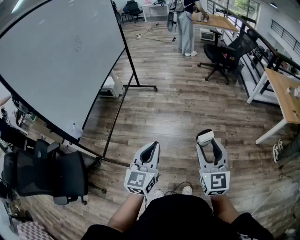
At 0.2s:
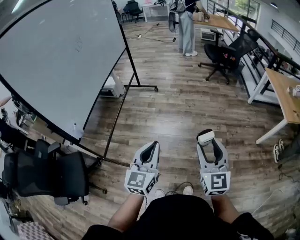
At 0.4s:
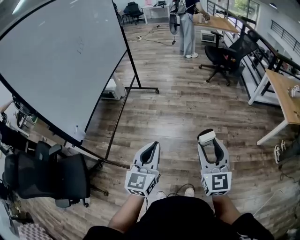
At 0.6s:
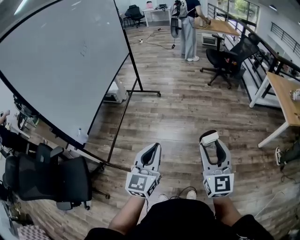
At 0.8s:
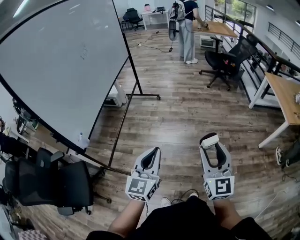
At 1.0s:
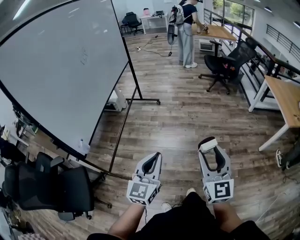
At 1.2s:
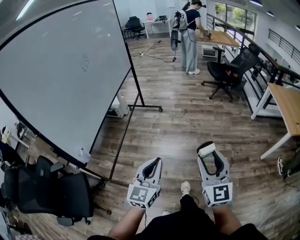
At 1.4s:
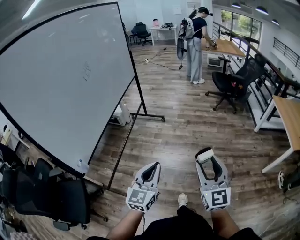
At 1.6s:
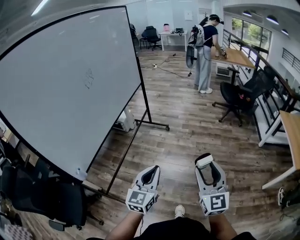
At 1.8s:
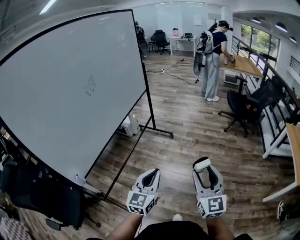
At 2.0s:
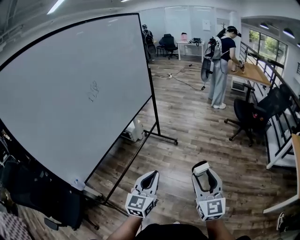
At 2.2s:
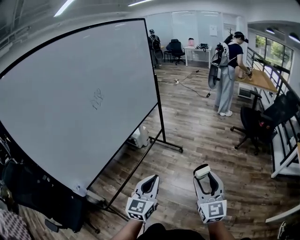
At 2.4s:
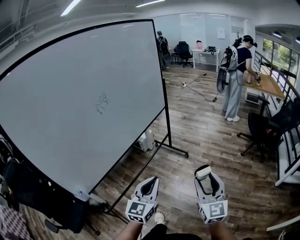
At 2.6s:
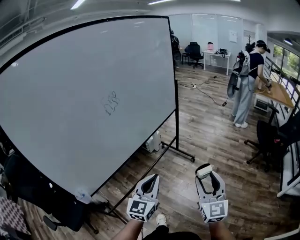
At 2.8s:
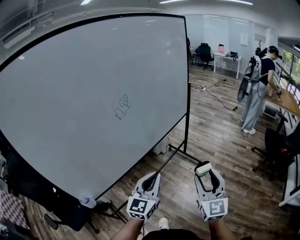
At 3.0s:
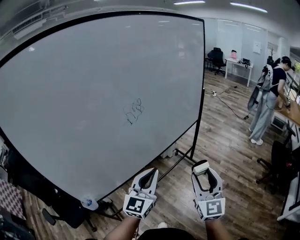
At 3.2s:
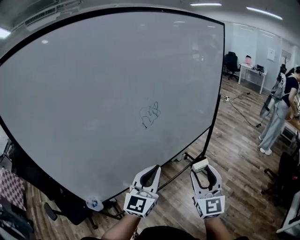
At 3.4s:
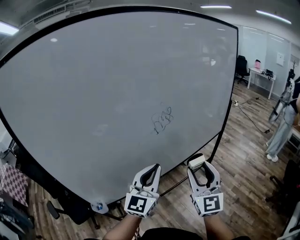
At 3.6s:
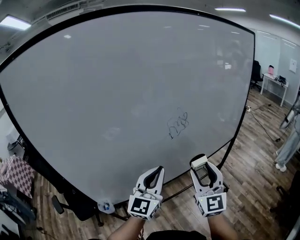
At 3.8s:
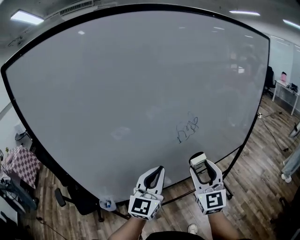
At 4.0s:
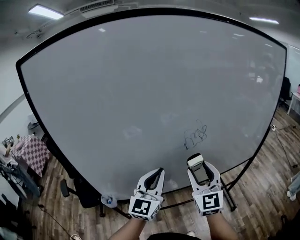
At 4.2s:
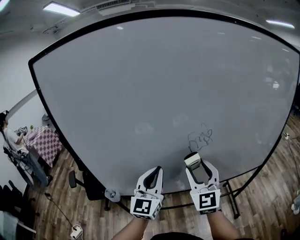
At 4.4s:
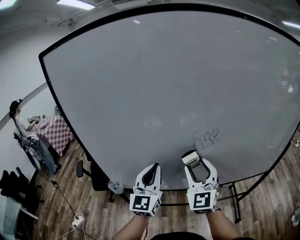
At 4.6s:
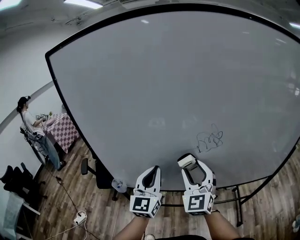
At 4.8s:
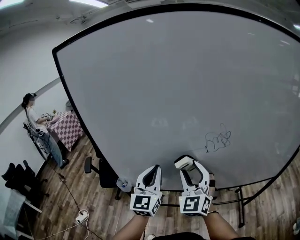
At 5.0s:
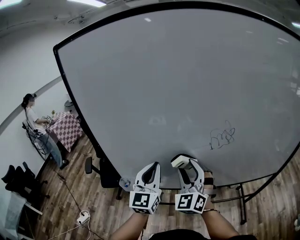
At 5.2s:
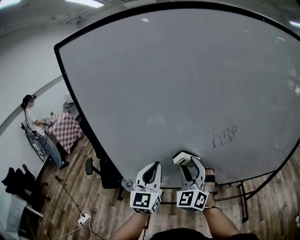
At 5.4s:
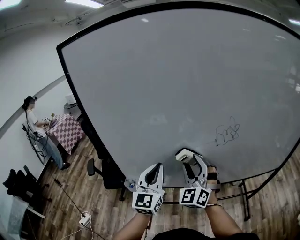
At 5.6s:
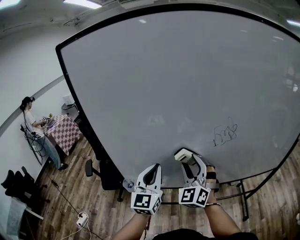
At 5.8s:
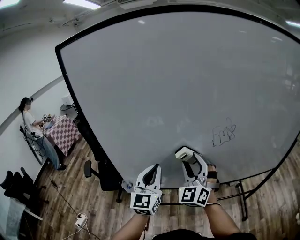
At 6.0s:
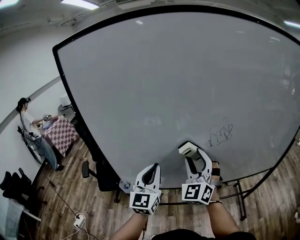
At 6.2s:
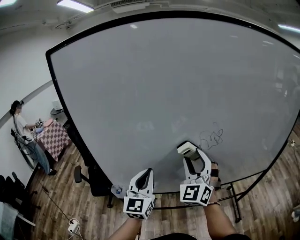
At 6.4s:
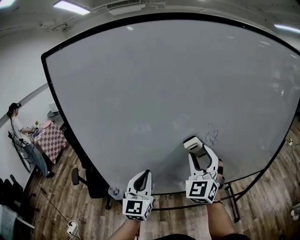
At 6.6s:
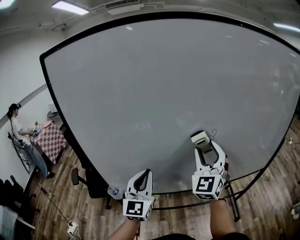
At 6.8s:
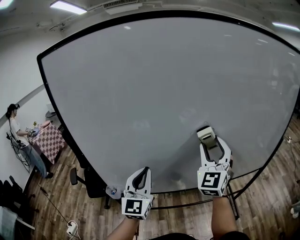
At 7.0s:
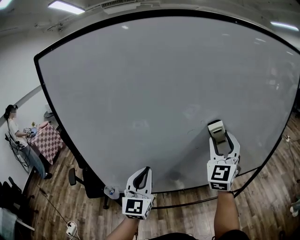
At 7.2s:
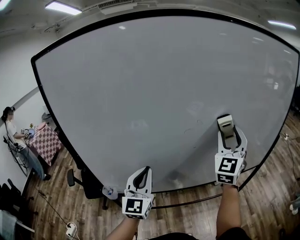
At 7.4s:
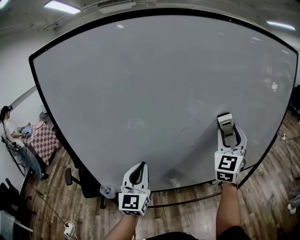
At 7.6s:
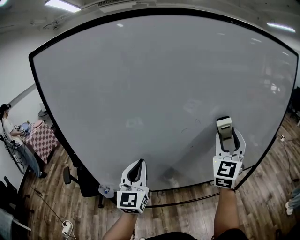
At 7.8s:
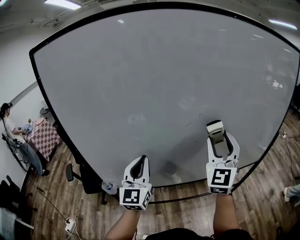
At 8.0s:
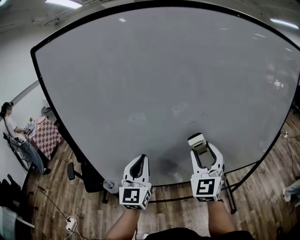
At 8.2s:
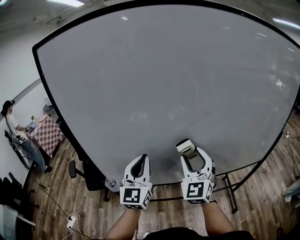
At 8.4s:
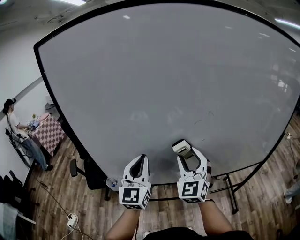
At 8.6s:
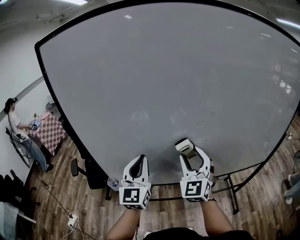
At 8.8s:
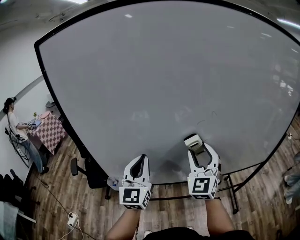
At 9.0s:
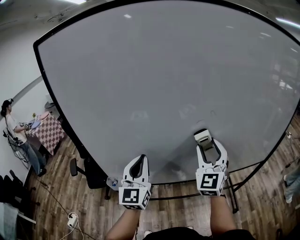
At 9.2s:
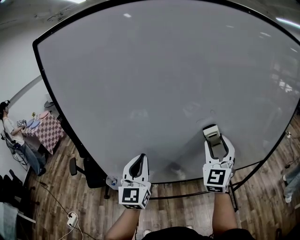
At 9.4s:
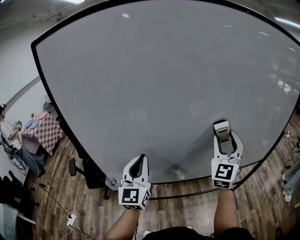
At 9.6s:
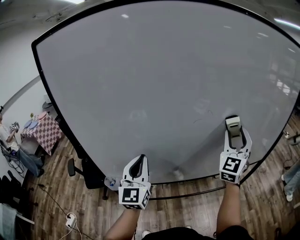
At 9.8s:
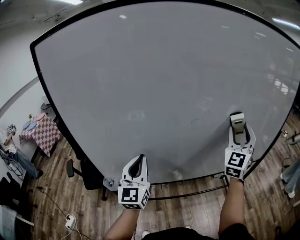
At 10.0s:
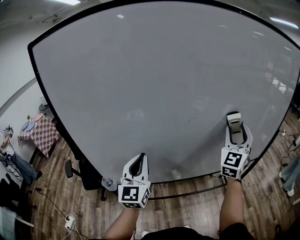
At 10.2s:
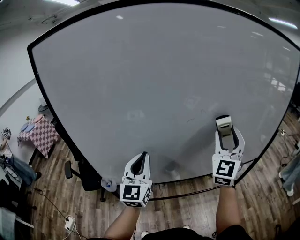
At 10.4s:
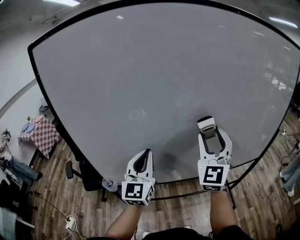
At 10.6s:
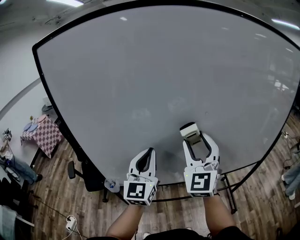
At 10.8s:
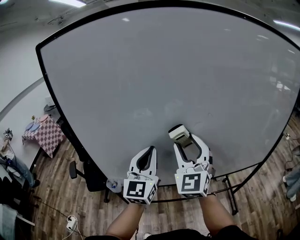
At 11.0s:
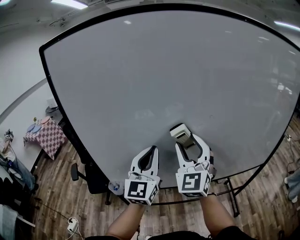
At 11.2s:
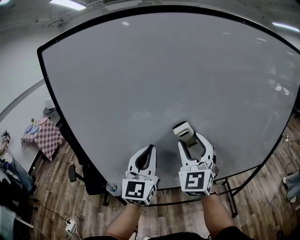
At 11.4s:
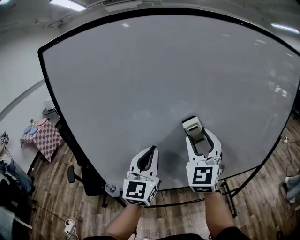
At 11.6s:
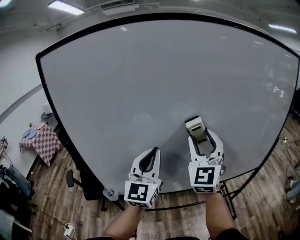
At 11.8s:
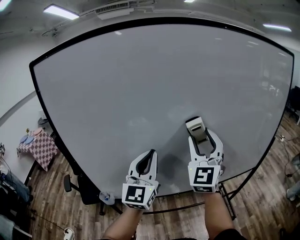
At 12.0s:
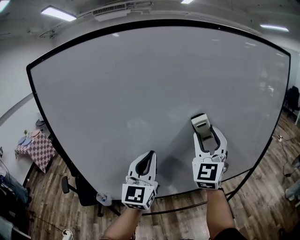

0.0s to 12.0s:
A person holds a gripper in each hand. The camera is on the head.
0.0s to 1.6s: The two grippers go roughly 20 cm forward.
1.6s to 3.0s: The left gripper changes place by approximately 40 cm, and swivels some 30 degrees. Meanwhile the right gripper shifts by about 50 cm, and rotates some 30 degrees.
3.0s to 4.4s: The right gripper ends up roughly 35 cm from where it was, and rotates approximately 50 degrees; the left gripper shifts by about 20 cm, and swivels approximately 50 degrees.
4.4s to 6.0s: The two grippers go roughly 5 cm to the left.
6.0s to 7.6s: The right gripper shifts approximately 25 cm to the right and upward, and changes its angle by some 30 degrees. The left gripper moves some 5 cm.
7.6s to 9.0s: The right gripper travels to the left and downward by about 15 cm.
9.0s to 10.4s: The left gripper moves about 5 cm, while the right gripper is displaced upward by approximately 5 cm, and reaches approximately 15 cm to the right, then returns.
10.4s to 12.0s: The left gripper shifts some 10 cm upward and to the right. Meanwhile the right gripper heads upward, covering about 5 cm, and travels to the left and back again, some 10 cm each way.

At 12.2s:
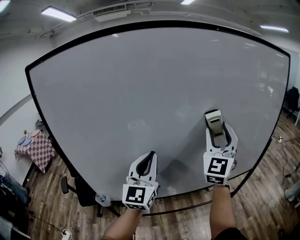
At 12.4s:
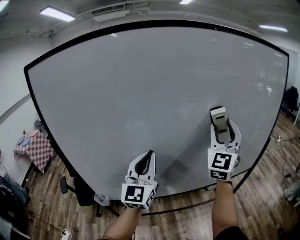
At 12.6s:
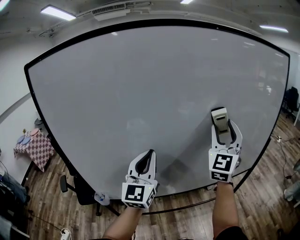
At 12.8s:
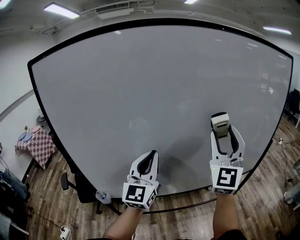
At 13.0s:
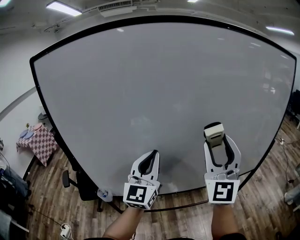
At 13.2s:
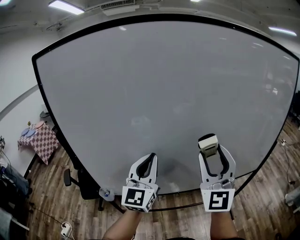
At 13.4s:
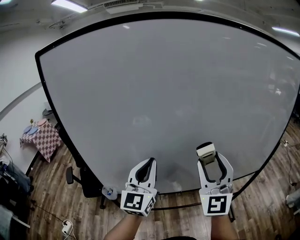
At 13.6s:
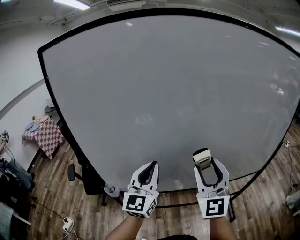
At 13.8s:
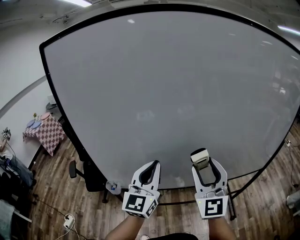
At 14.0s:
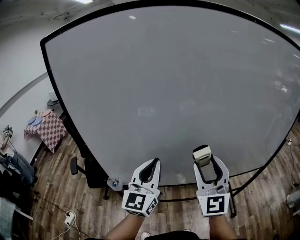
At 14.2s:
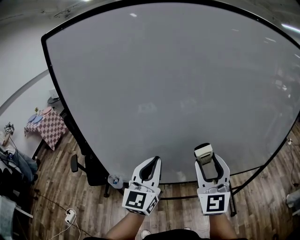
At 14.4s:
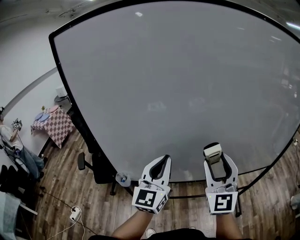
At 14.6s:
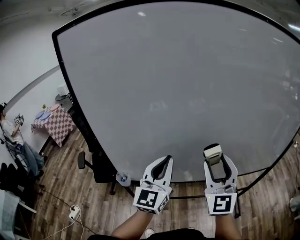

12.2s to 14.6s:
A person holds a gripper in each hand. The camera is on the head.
12.2s to 13.4s: The left gripper changes place by some 5 cm. Meanwhile the right gripper travels backward, to the left and downward by approximately 15 cm, and swivels about 20 degrees.
13.4s to 14.6s: The left gripper moves about 5 cm; the right gripper heads downward and to the left, covering roughly 10 cm.

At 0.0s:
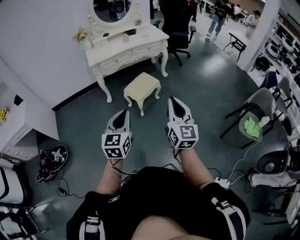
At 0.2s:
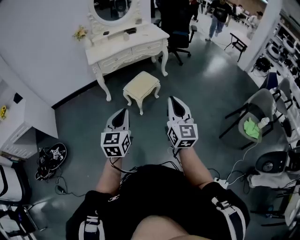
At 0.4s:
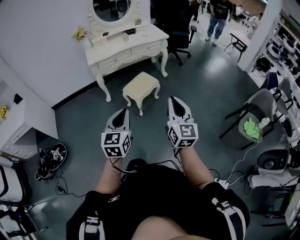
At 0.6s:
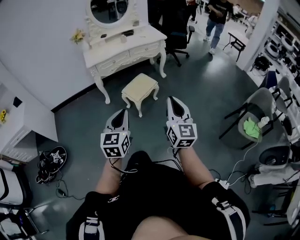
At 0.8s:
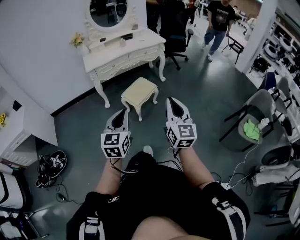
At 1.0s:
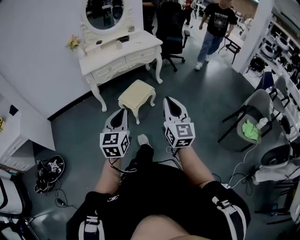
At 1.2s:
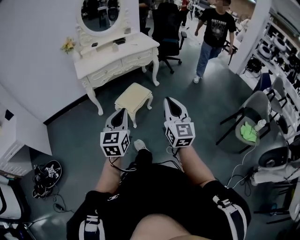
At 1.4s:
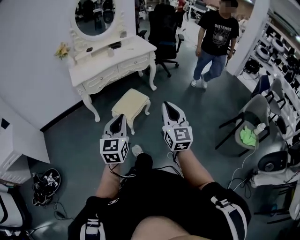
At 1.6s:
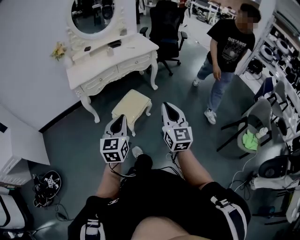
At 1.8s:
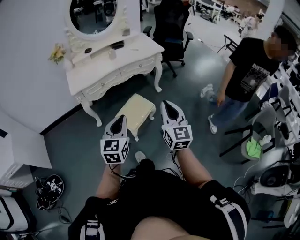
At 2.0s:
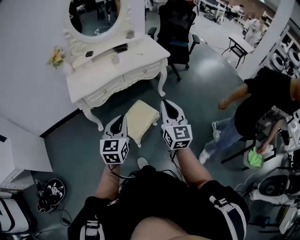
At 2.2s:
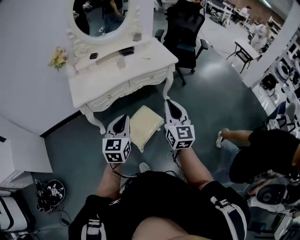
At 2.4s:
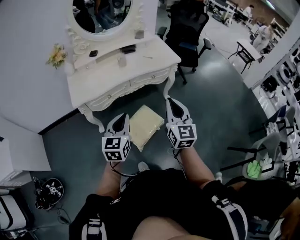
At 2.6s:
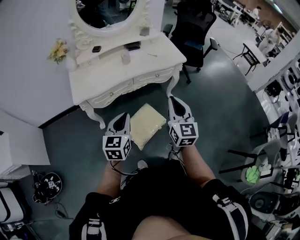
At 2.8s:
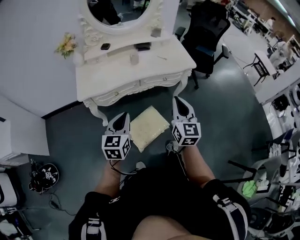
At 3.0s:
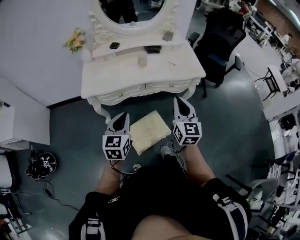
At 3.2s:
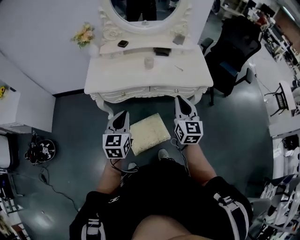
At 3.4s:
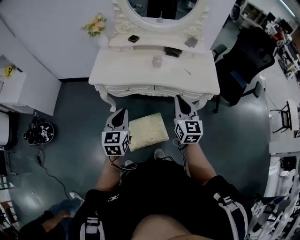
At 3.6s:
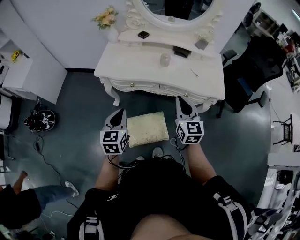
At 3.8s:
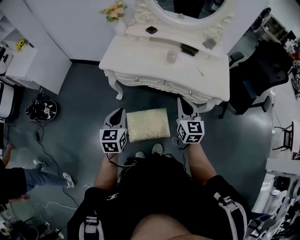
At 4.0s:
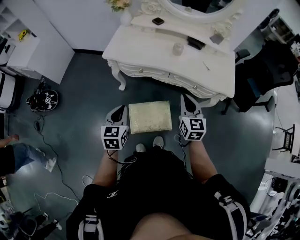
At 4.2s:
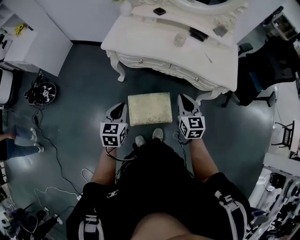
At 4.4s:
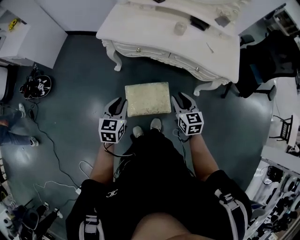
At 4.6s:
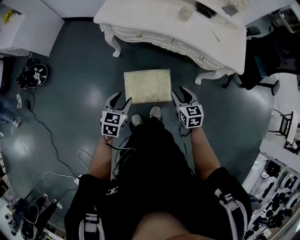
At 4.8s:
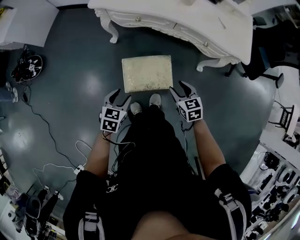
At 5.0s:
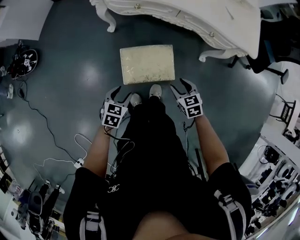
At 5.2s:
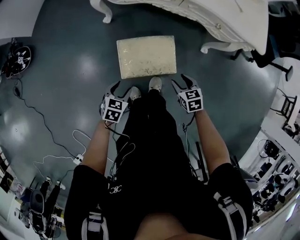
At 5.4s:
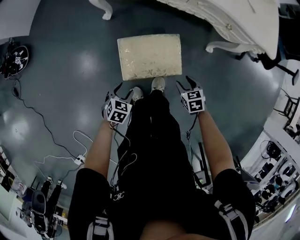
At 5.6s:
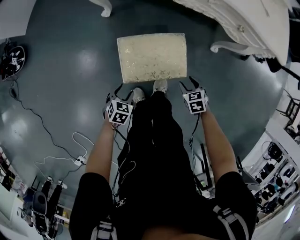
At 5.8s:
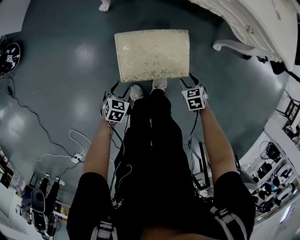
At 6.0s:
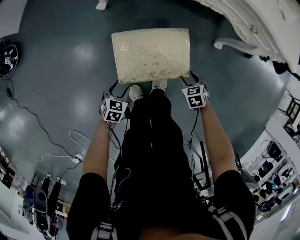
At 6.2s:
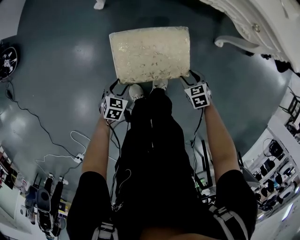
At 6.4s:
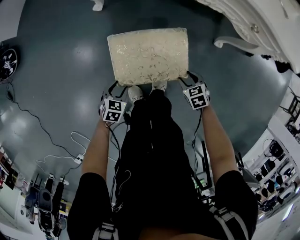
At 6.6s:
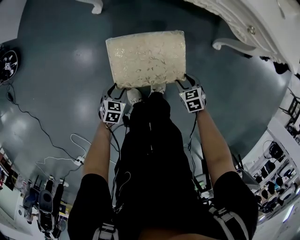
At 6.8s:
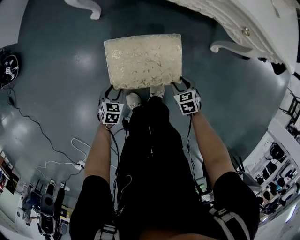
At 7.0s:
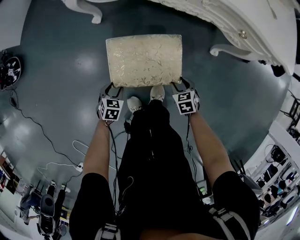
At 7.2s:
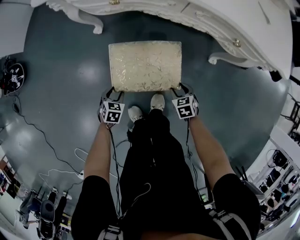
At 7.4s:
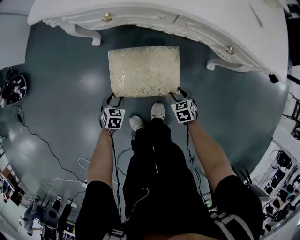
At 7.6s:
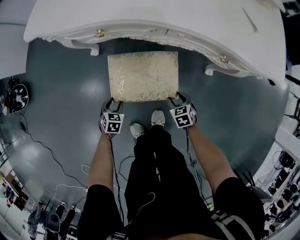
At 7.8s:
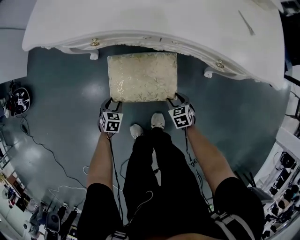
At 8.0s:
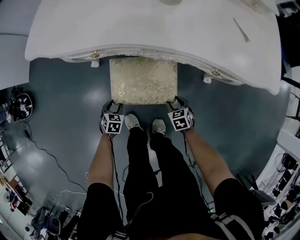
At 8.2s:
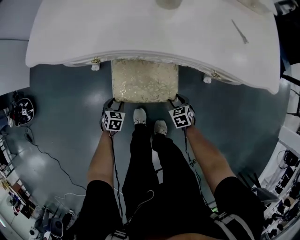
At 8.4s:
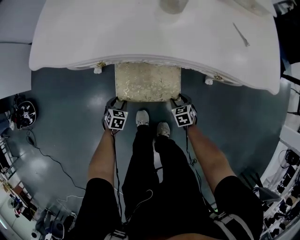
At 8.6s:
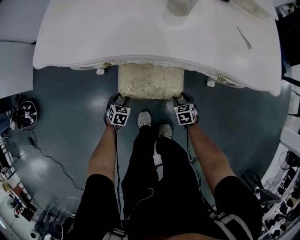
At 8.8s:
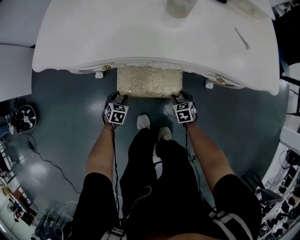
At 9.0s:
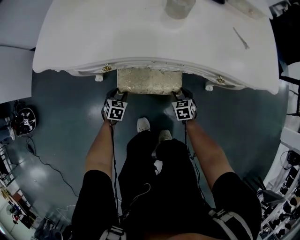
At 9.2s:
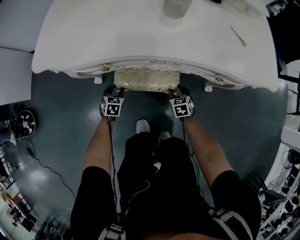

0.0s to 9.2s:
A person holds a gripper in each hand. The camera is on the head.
0.0s to 1.6s: The two grippers go approximately 30 cm forward.
1.6s to 3.0s: Both grippers are carried forward, about 50 cm.
3.0s to 4.6s: The grippers both shift downward by approximately 25 cm. The right gripper points its fingers some 30 degrees further downward, and opens up, while the left gripper rotates approximately 30 degrees, and opens up.
4.6s to 6.2s: Both grippers travel together downward, about 50 cm. The right gripper points its fingers roughly 30 degrees further downward. The left gripper changes its angle by some 20 degrees.
6.2s to 7.6s: Both grippers move forward, roughly 15 cm.
7.6s to 9.2s: The grippers both shift forward by approximately 20 cm.
